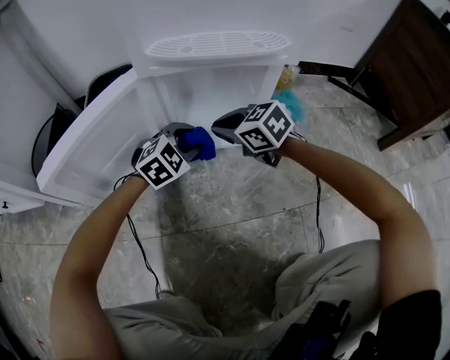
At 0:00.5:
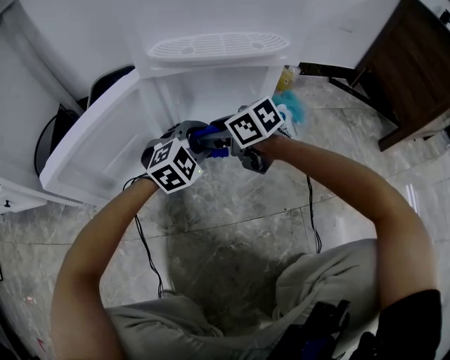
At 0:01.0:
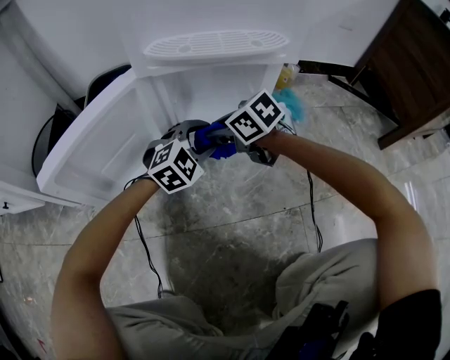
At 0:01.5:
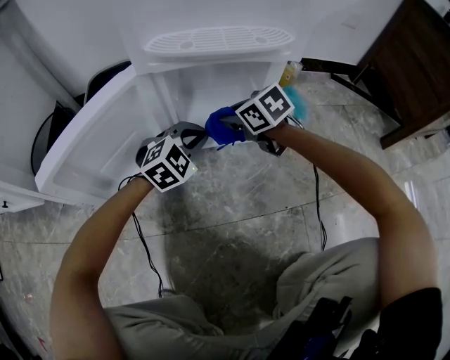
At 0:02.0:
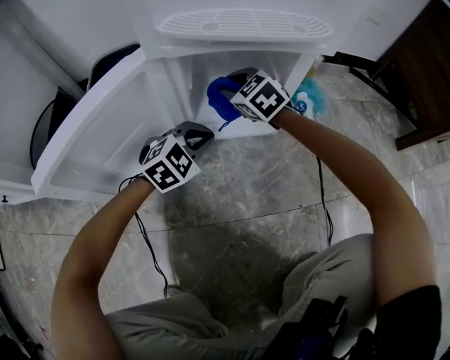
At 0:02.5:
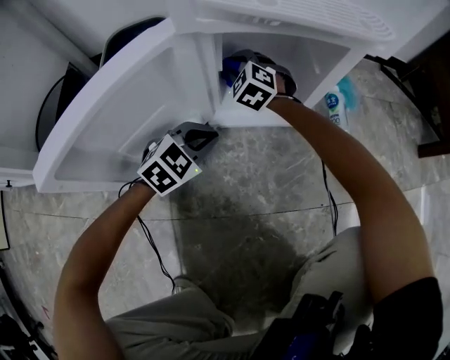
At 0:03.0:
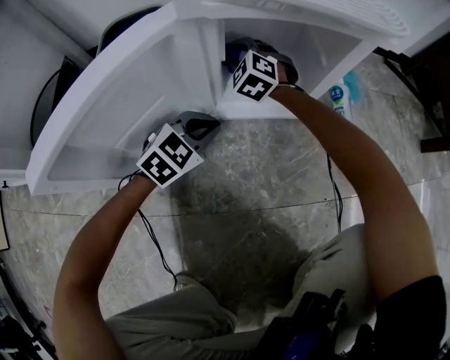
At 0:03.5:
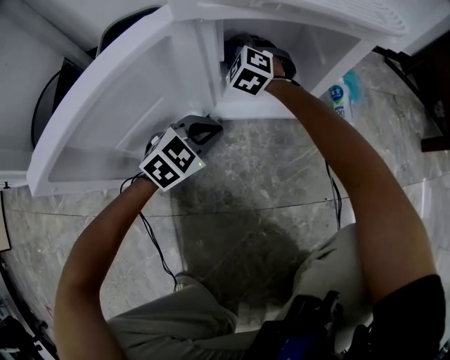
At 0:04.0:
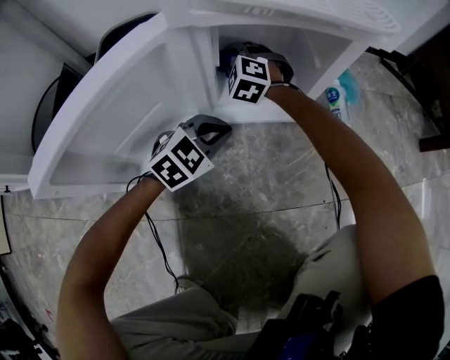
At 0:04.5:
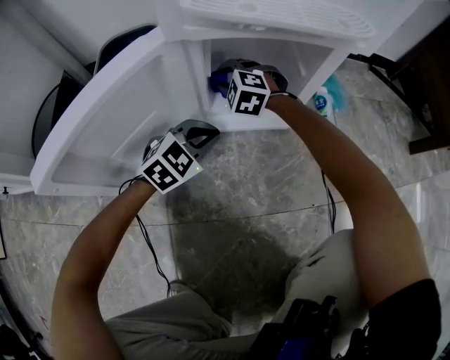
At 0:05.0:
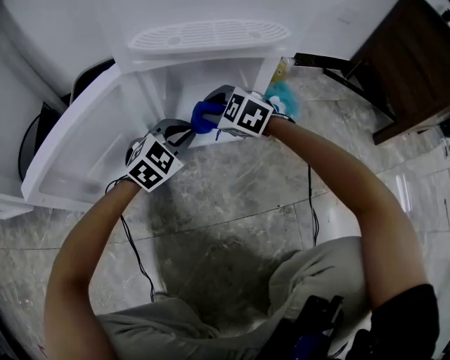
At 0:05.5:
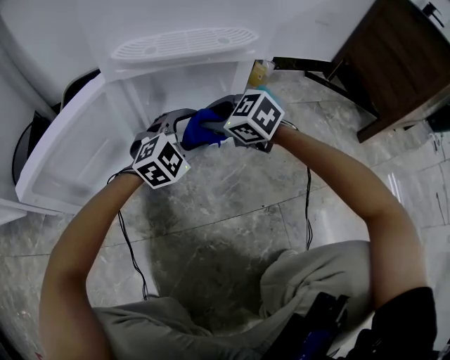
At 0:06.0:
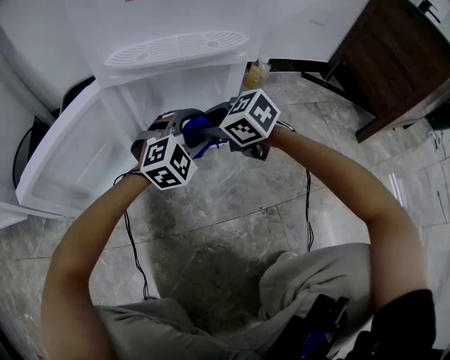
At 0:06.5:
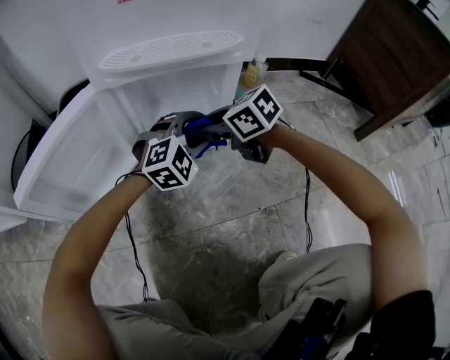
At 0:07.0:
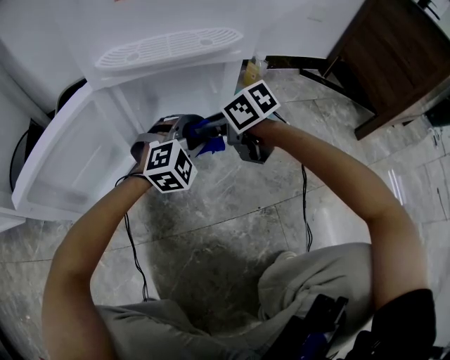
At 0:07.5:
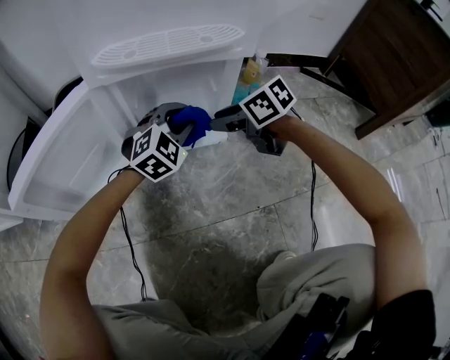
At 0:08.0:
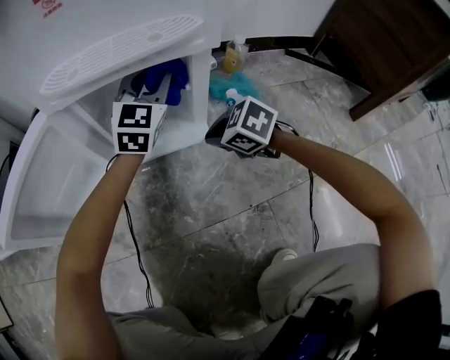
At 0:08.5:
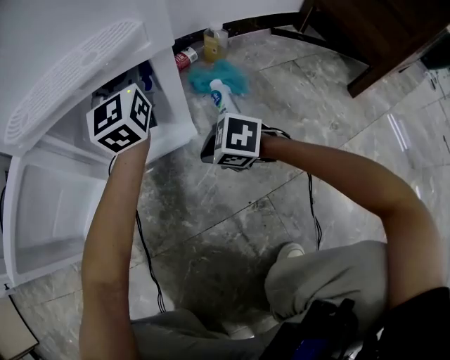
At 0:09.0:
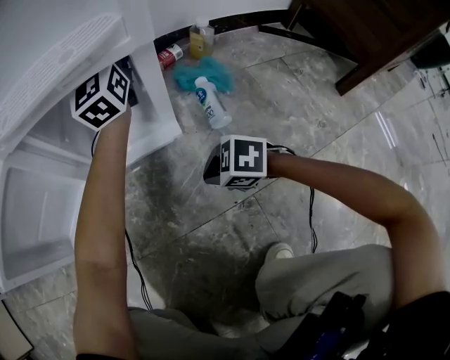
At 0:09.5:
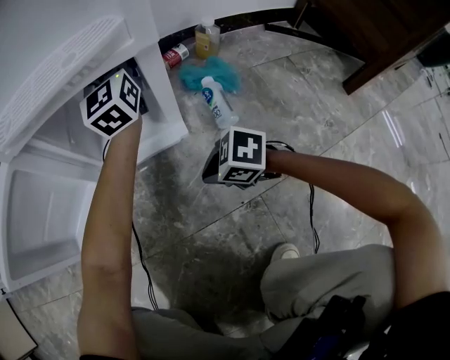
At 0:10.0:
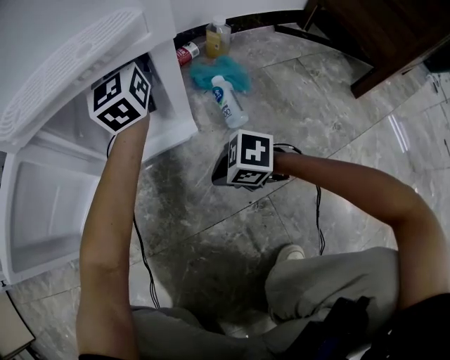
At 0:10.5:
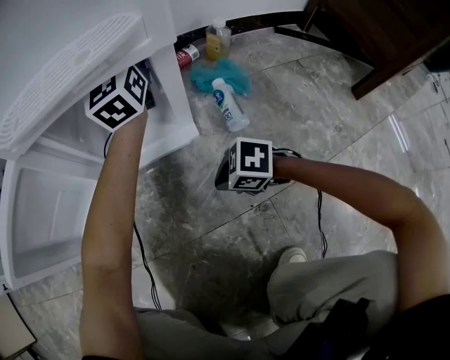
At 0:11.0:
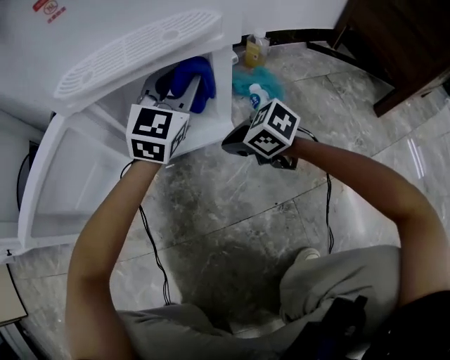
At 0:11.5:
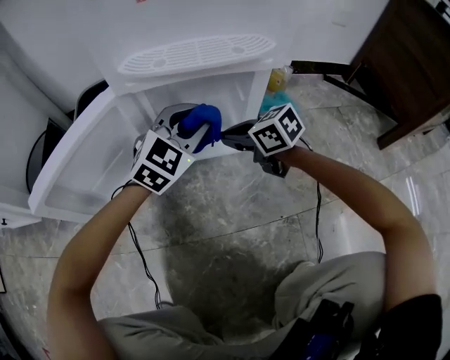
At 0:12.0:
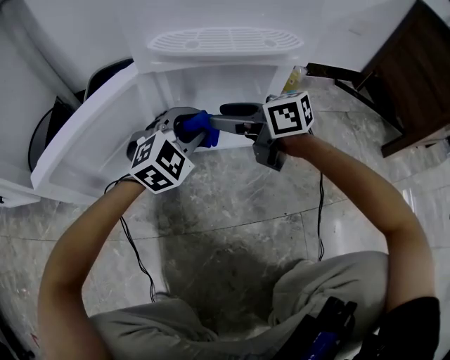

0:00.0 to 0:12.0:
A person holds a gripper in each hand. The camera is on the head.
0:00.0 to 0:02.0: The right gripper goes roughly 10 cm forward, rotates approximately 20 degrees, and opens up. Meanwhile the left gripper closes its fingers.
0:02.0 to 0:04.0: The right gripper heads to the left and downward, covering approximately 10 cm, and turns by roughly 40 degrees.
0:04.0 to 0:06.0: The left gripper goes roughly 15 cm to the right and upward, rotates about 30 degrees, and opens up, while the right gripper heads backward, to the right and upward, covering about 25 cm, and rotates around the line of its fingers by about 50 degrees, clockwise from behind.
0:06.0 to 0:08.0: The left gripper goes some 15 cm forward and upward, swivels some 40 degrees, and closes its fingers. Meanwhile the right gripper goes roughly 10 cm to the right and downward.
0:08.0 to 0:10.0: The right gripper goes approximately 10 cm backward and downward. Meanwhile the left gripper is displaced forward by roughly 5 cm, and rotates roughly 30 degrees.
0:10.0 to 0:12.0: The left gripper shifts by approximately 25 cm, and angles its fingers downward, by approximately 40 degrees. The right gripper ends up some 25 cm from where it was, angles its fingers upward, by roughly 40 degrees, and opens up.

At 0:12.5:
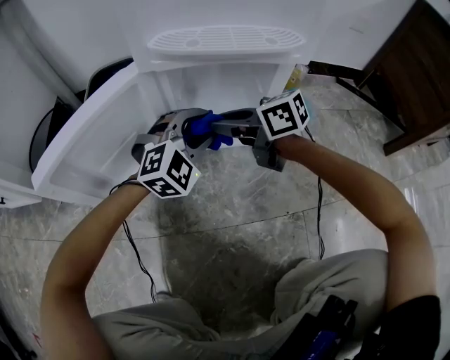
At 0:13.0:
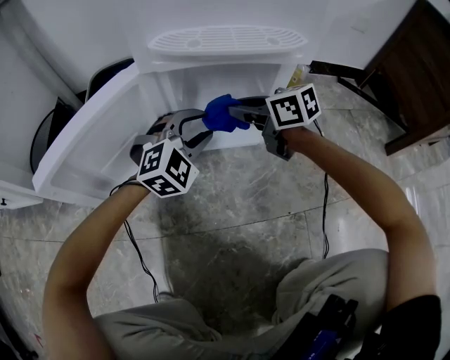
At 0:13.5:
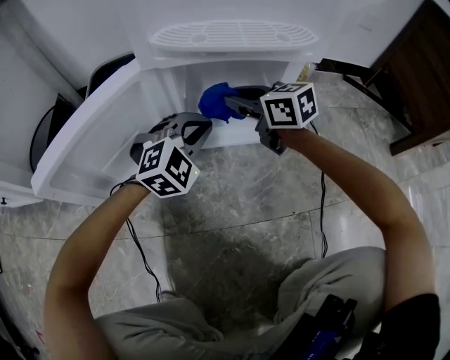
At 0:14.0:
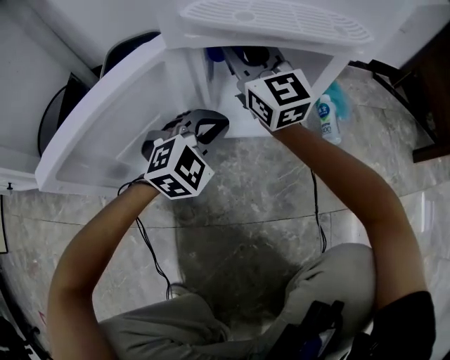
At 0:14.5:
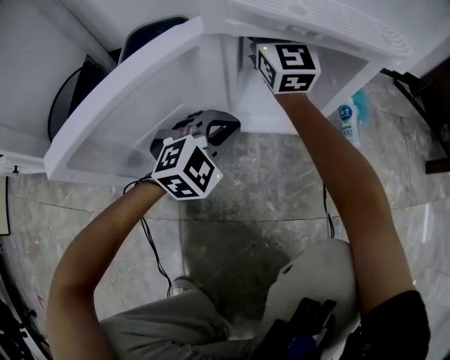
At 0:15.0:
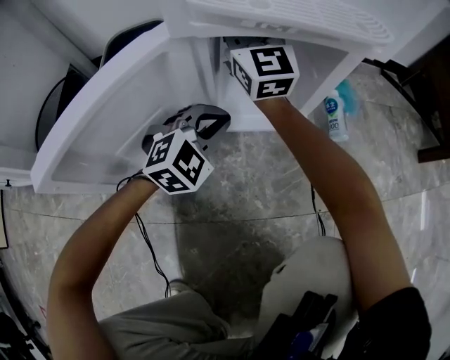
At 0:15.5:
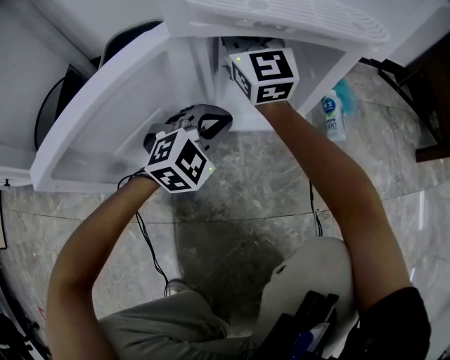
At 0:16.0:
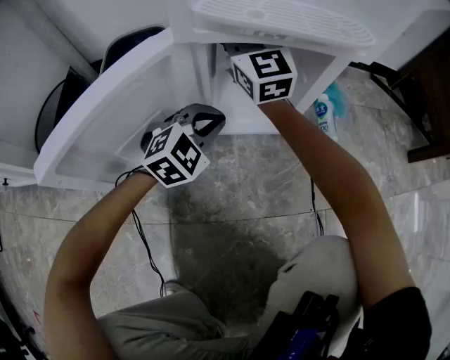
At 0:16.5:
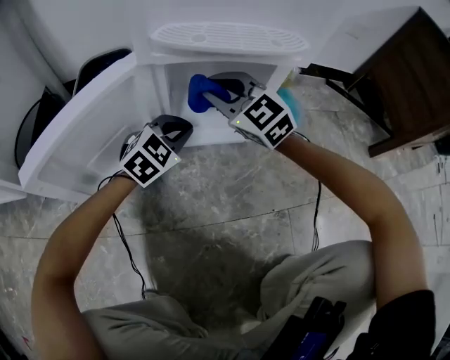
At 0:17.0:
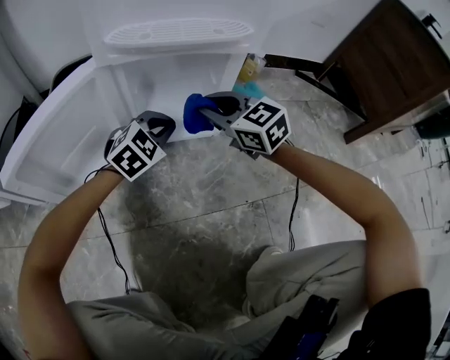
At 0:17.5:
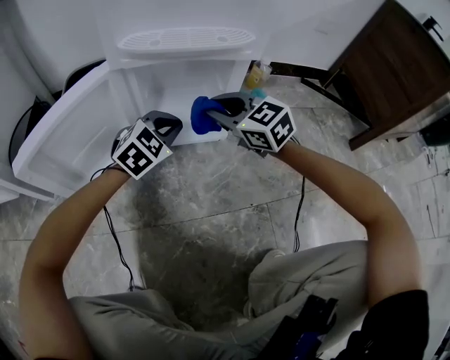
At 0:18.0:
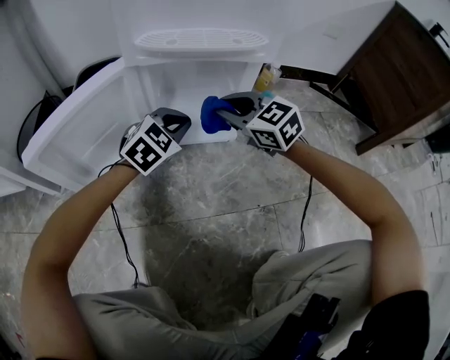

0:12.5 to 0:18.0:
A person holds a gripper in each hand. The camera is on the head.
0:12.5 to 0:14.5: The right gripper moves forward and upward, about 20 cm, and tilts its fingers roughly 30 degrees upward; the left gripper goes roughly 10 cm to the left and downward, and closes its fingers.
0:14.5 to 0:16.0: The grippers make only small movements.
0:16.0 to 0:18.0: The left gripper travels to the right by roughly 5 cm. The right gripper travels backward, to the right and downward by roughly 20 cm, and points its fingers approximately 30 degrees further downward.

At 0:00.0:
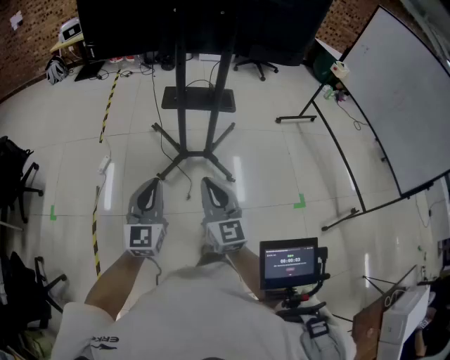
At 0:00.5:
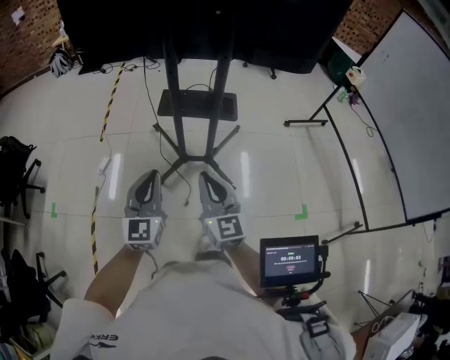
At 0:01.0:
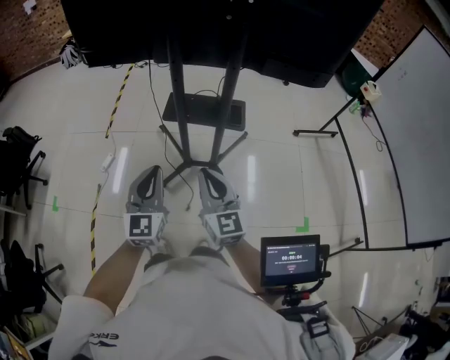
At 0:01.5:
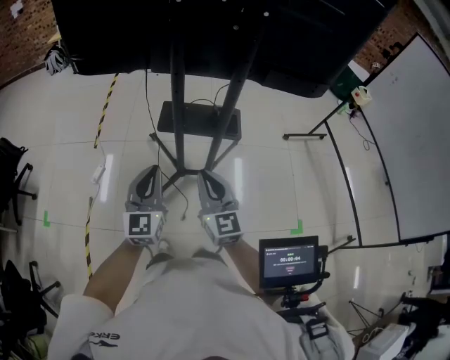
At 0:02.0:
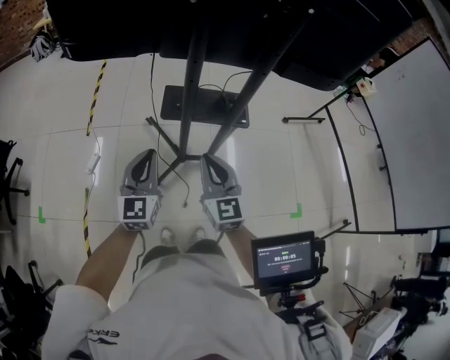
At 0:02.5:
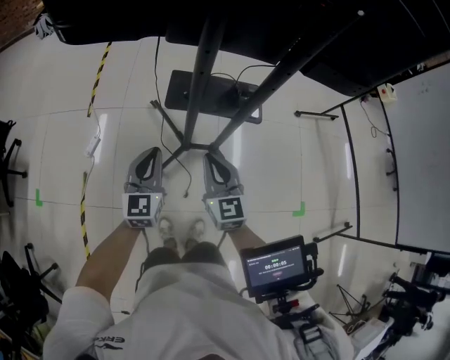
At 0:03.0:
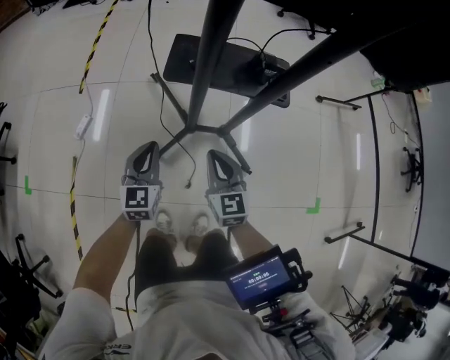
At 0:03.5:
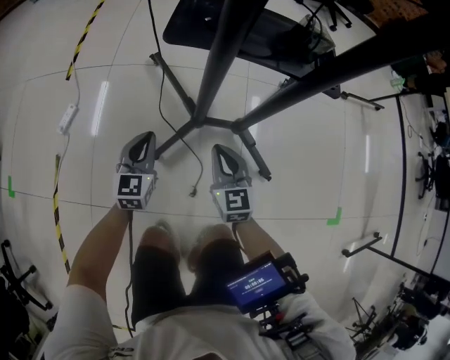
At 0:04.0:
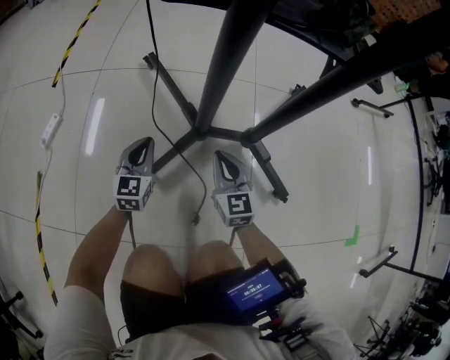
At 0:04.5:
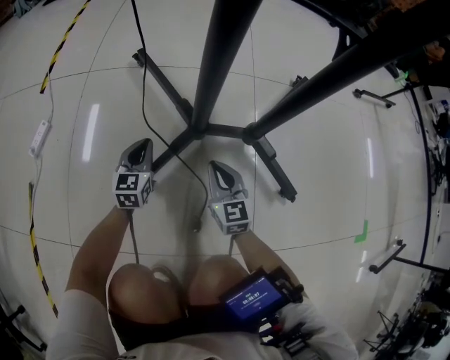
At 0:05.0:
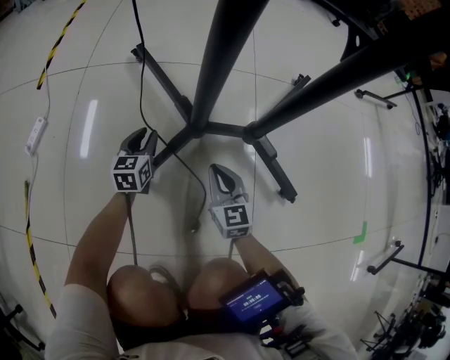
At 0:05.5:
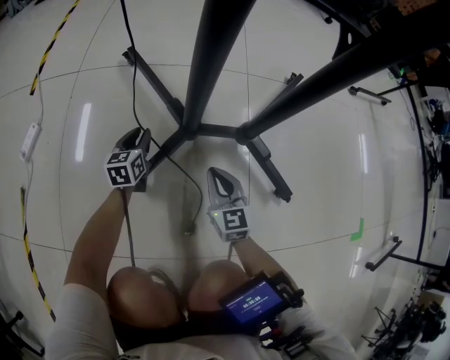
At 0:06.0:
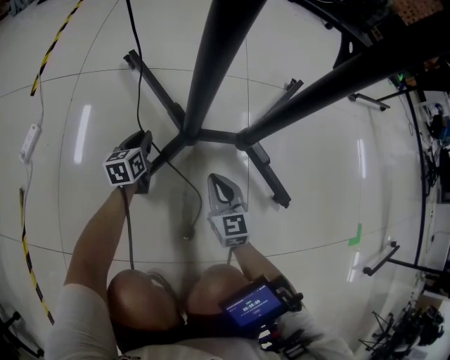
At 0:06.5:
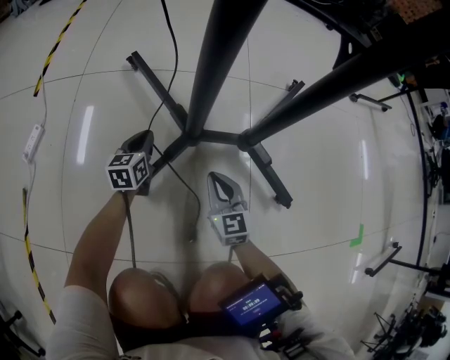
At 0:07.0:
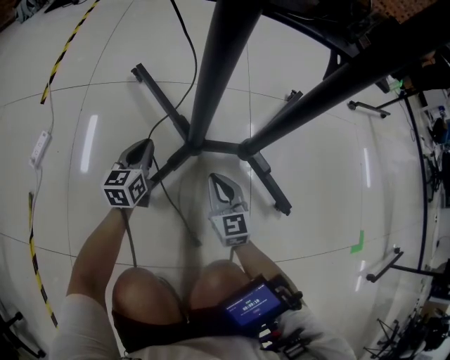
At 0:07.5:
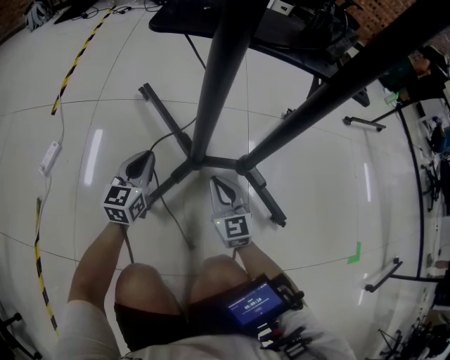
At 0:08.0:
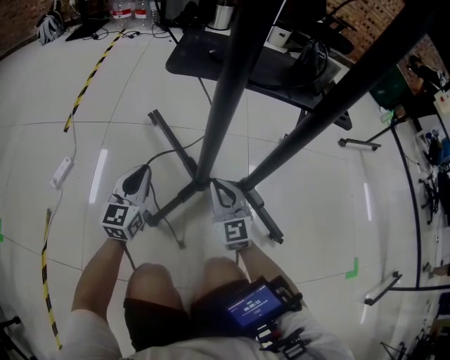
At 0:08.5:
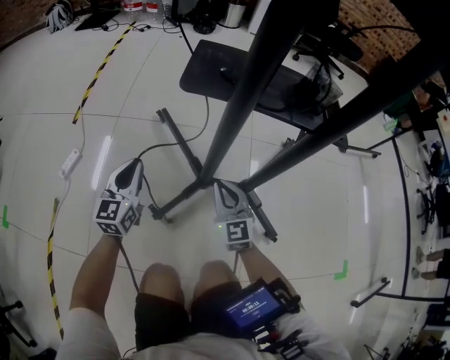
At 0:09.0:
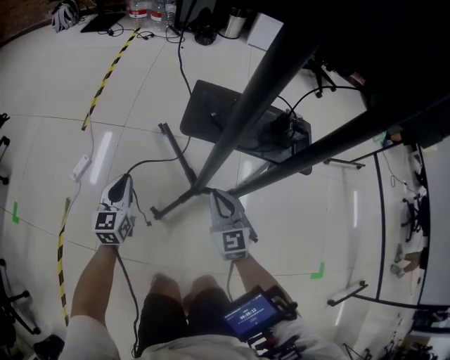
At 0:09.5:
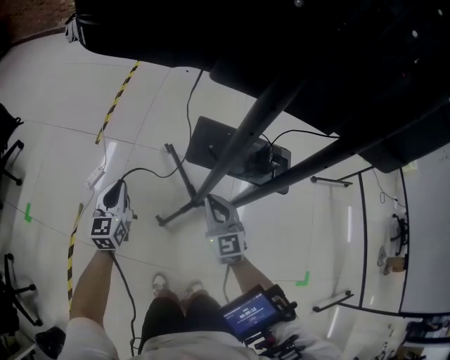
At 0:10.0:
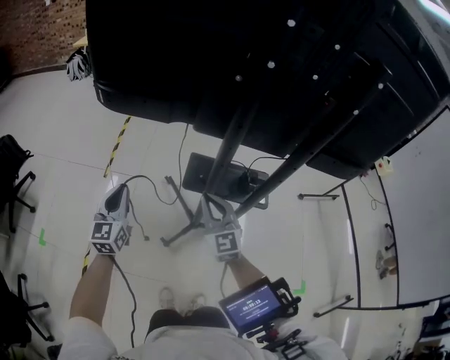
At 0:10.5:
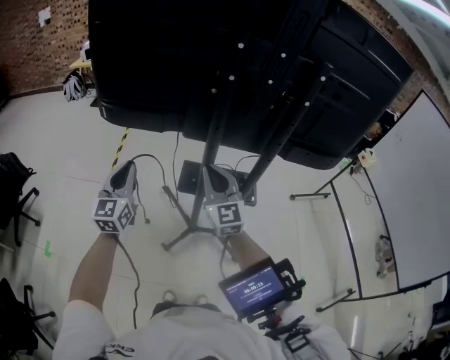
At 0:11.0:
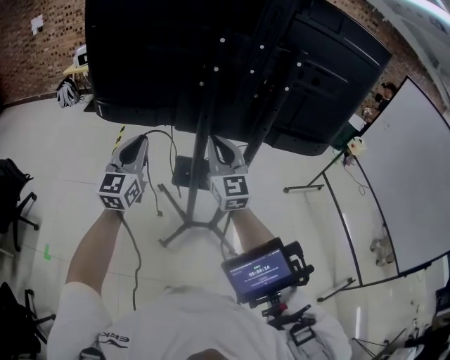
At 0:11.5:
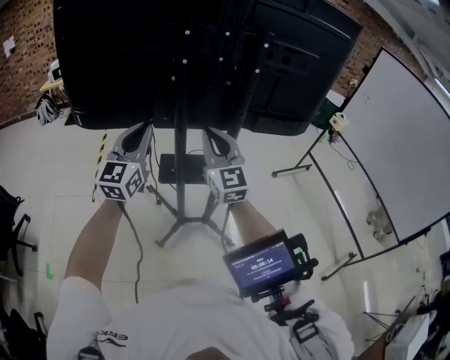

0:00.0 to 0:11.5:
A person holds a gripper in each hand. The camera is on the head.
0:00.0 to 0:02.0: The grippers both shift forward by approximately 35 cm.
0:02.0 to 0:04.0: Both grippers travel together downward, approximately 70 cm.
0:04.0 to 0:06.0: The right gripper is displaced downward by approximately 10 cm. Meanwhile the left gripper moves downward and forward, roughly 15 cm, and turns by approximately 30 degrees.
0:06.0 to 0:07.5: The right gripper heads upward, covering approximately 10 cm. Meanwhile the left gripper goes about 15 cm upward, and changes its angle by approximately 20 degrees.
0:07.5 to 0:09.5: Both grippers move upward, about 50 cm. The left gripper changes its angle by approximately 20 degrees.
0:09.5 to 0:11.5: The grippers both shift upward by about 50 cm. The right gripper turns by approximately 30 degrees, while the left gripper swivels roughly 40 degrees.
